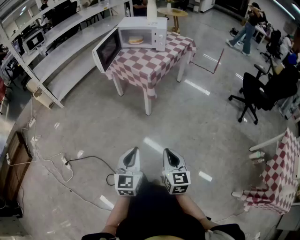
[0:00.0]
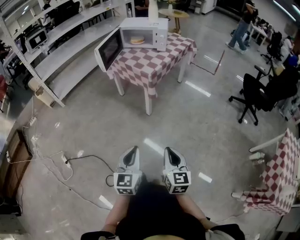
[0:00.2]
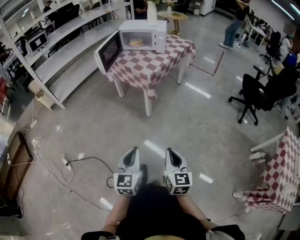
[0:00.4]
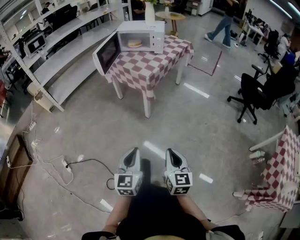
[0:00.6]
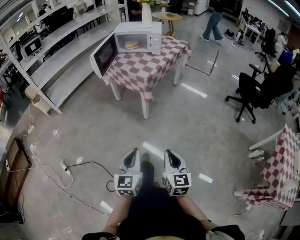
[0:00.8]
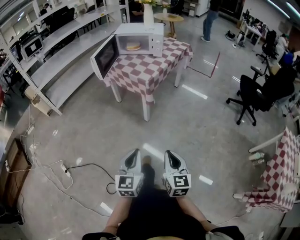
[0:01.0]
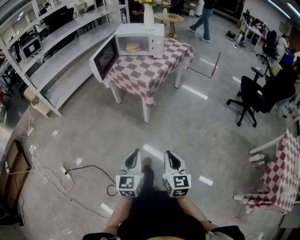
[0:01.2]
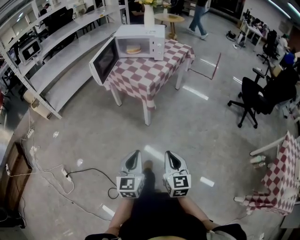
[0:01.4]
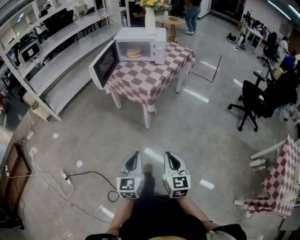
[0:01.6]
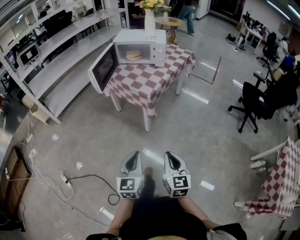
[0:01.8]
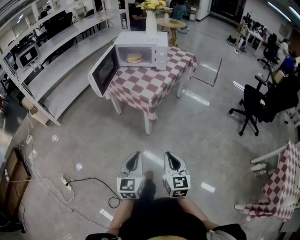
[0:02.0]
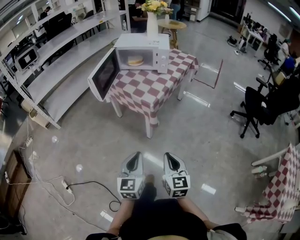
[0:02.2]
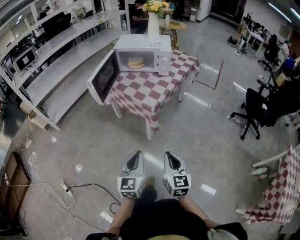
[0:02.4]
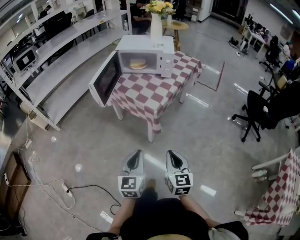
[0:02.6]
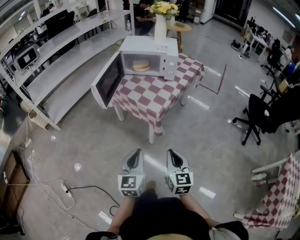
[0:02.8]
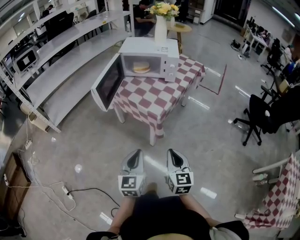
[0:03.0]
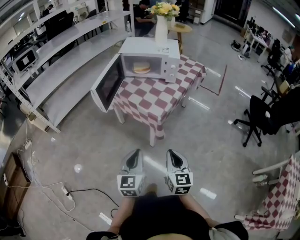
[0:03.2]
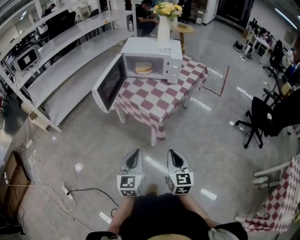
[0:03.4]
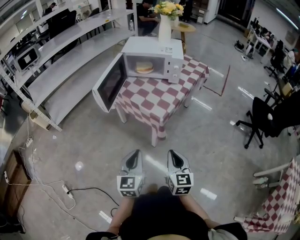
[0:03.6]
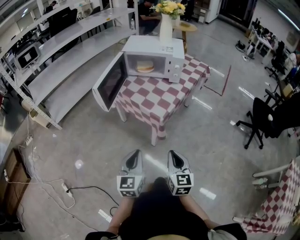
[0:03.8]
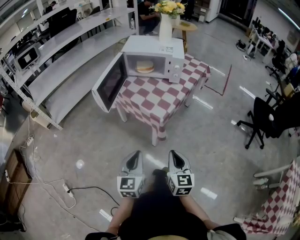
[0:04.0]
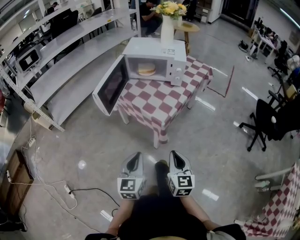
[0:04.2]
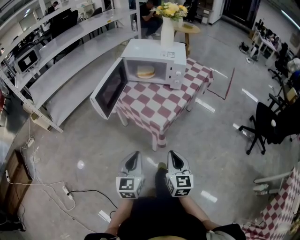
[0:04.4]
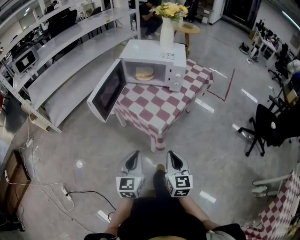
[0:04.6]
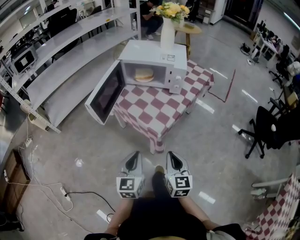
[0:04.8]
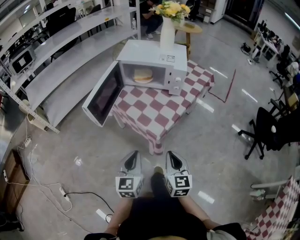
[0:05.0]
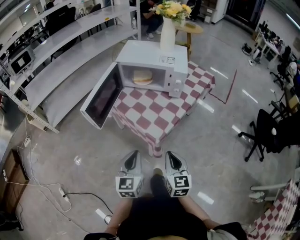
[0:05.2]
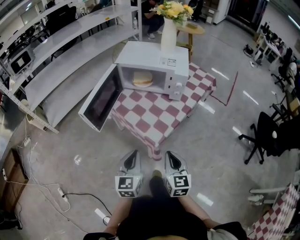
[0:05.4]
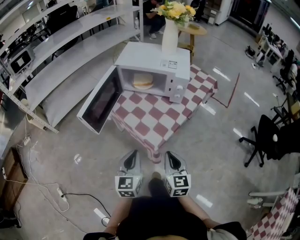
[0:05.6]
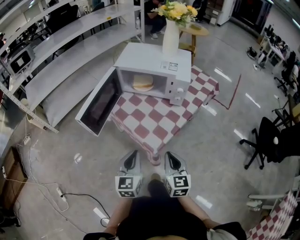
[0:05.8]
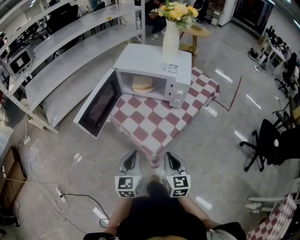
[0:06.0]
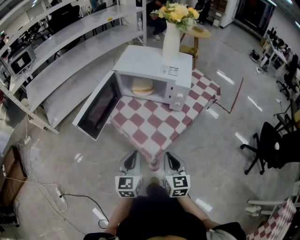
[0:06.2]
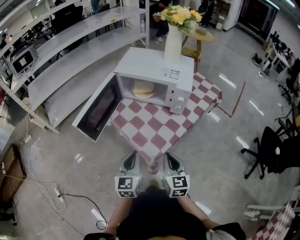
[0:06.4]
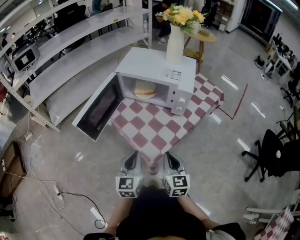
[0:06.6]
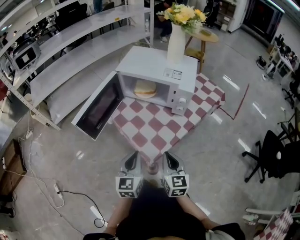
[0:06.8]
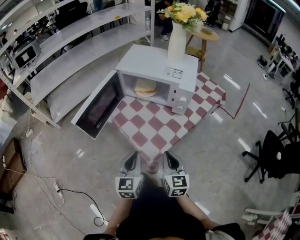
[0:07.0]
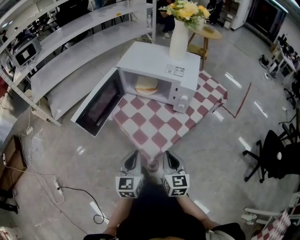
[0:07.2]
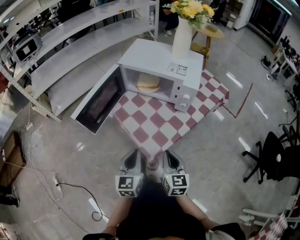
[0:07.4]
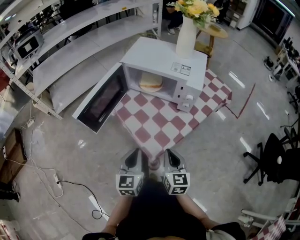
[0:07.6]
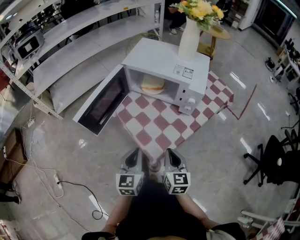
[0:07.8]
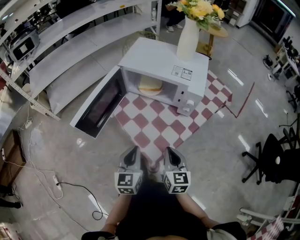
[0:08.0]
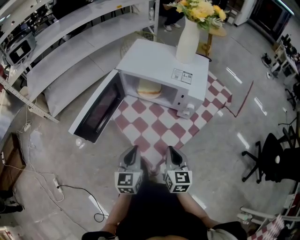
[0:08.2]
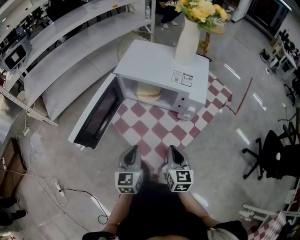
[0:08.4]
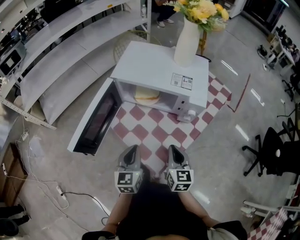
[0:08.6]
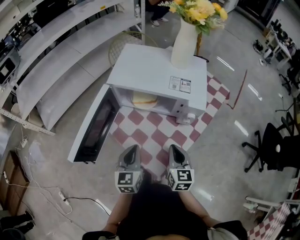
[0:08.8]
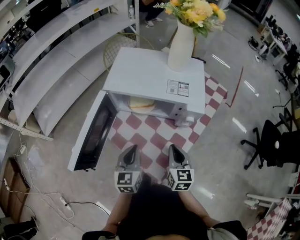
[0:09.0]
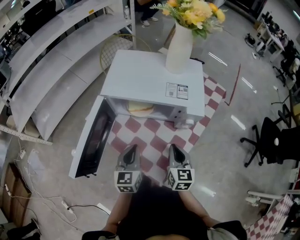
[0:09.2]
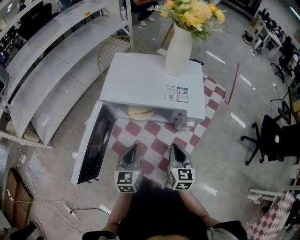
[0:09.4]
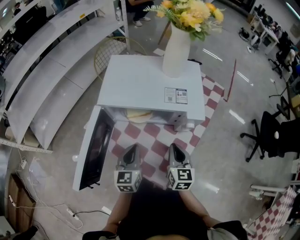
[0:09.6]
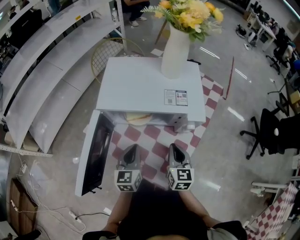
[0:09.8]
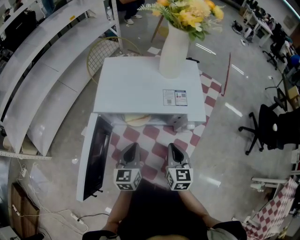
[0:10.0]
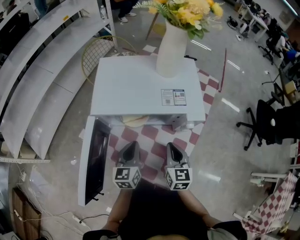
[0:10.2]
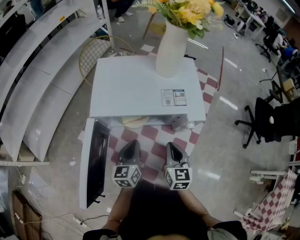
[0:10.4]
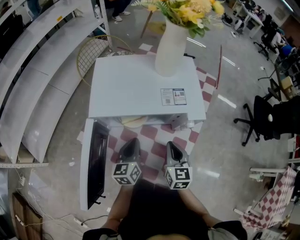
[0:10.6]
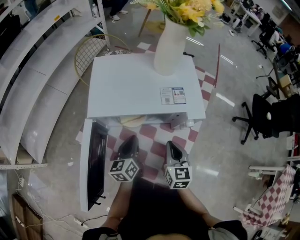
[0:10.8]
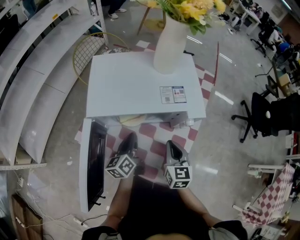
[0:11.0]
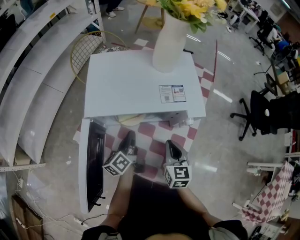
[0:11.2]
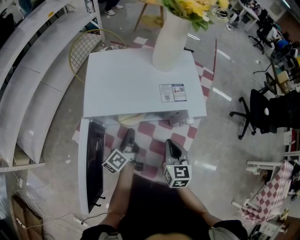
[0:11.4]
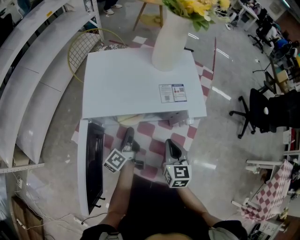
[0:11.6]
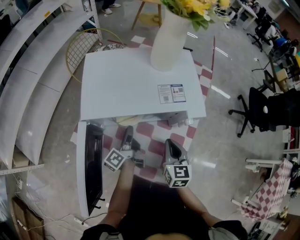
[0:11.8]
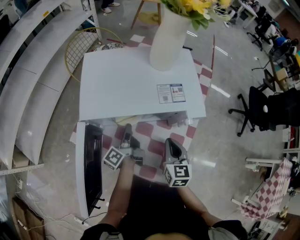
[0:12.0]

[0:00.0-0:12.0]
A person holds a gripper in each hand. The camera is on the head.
0:00.0 to 0:01.6: The grippers both shift forward by roughly 10 cm.
0:01.6 to 0:03.0: The grippers both shift forward by about 20 cm.
0:03.0 to 0:04.4: The grippers both shift forward by some 10 cm.
0:04.4 to 0:06.0: The grippers both shift forward by about 15 cm.
0:06.0 to 0:07.6: The right gripper goes approximately 5 cm forward.
0:07.6 to 0:09.0: The grippers both shift forward by approximately 15 cm.
0:09.0 to 0:10.4: The left gripper travels forward by some 10 cm, while the right gripper travels forward by approximately 5 cm.
0:10.4 to 0:12.0: The left gripper goes some 10 cm forward and downward, twists some 60 degrees counterclockwise, seen from behind, and opens up.

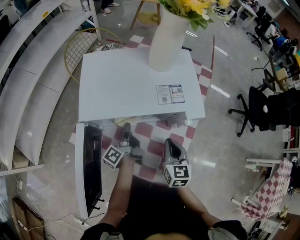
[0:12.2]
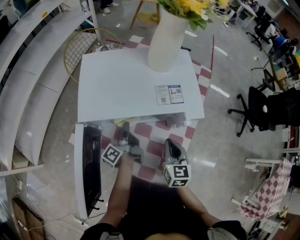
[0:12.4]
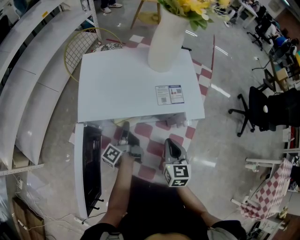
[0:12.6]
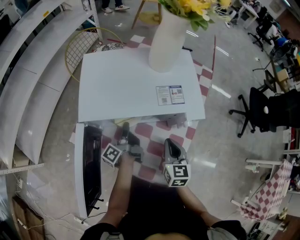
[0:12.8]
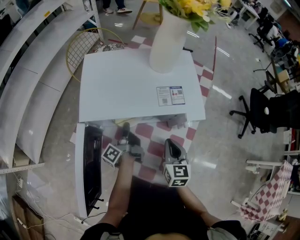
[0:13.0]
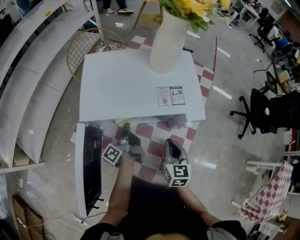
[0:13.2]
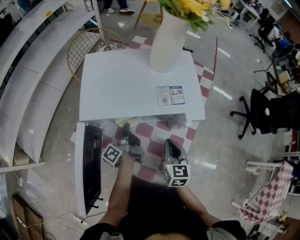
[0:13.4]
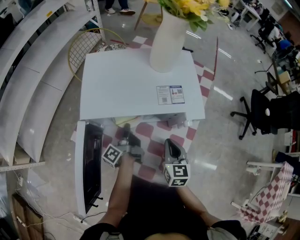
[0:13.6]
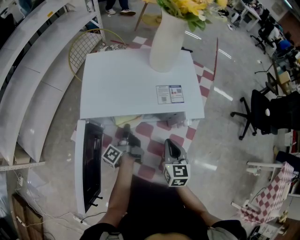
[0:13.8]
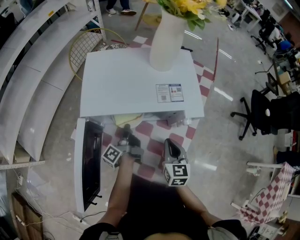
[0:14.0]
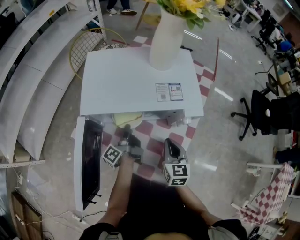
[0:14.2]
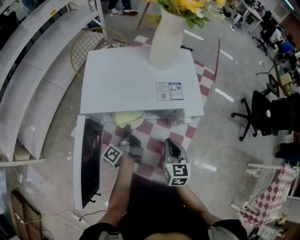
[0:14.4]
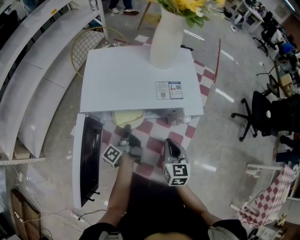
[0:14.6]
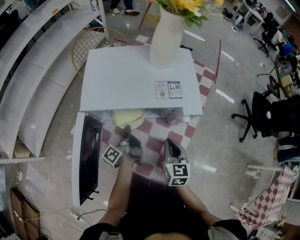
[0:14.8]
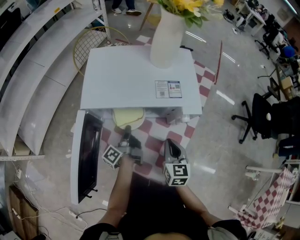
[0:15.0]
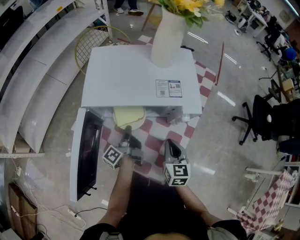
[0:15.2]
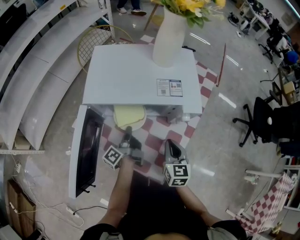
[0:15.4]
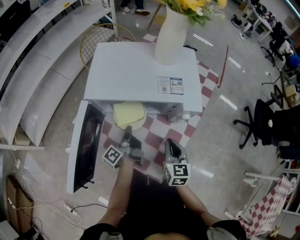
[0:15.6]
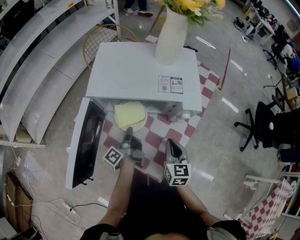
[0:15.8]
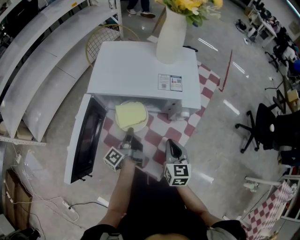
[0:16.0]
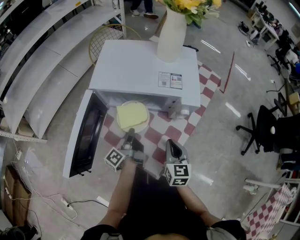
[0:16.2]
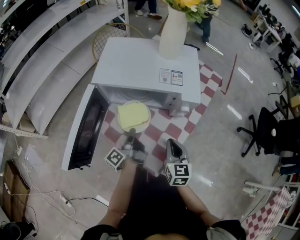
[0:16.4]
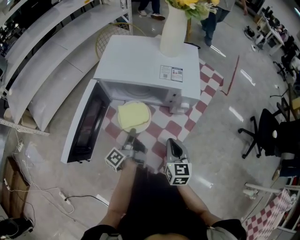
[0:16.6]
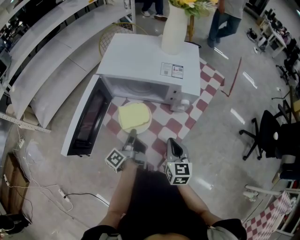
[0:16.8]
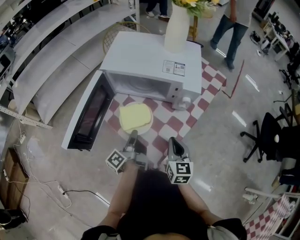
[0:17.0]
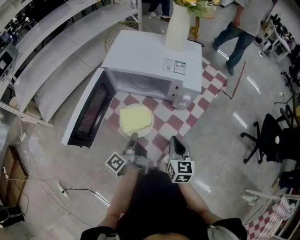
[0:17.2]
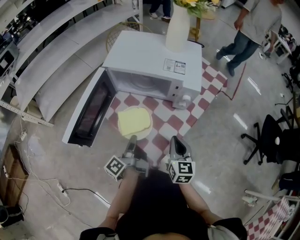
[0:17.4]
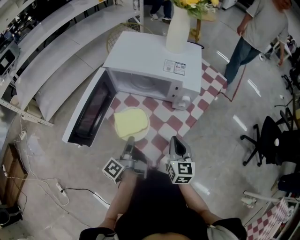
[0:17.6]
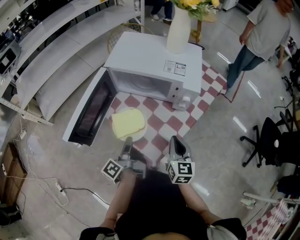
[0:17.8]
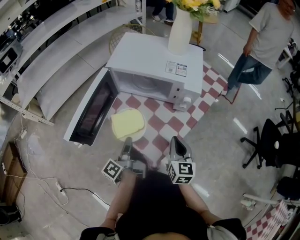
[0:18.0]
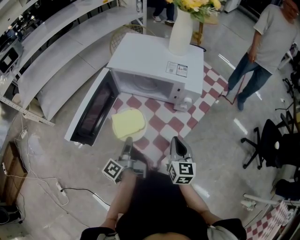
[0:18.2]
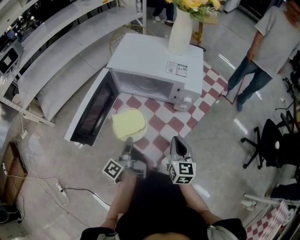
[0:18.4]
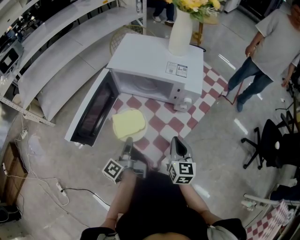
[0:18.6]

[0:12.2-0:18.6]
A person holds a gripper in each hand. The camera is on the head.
0:12.2 to 0:13.8: The left gripper closes its fingers.
0:13.8 to 0:15.4: The left gripper ends up about 5 cm from where it was.
0:15.4 to 0:17.0: The left gripper shifts some 15 cm backward. The right gripper moves backward, roughly 10 cm.
0:17.0 to 0:18.6: The left gripper is displaced backward by some 5 cm.

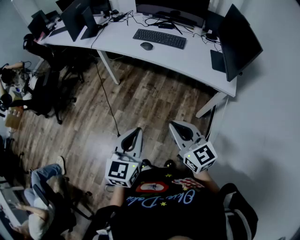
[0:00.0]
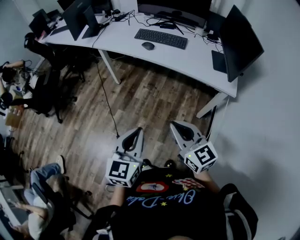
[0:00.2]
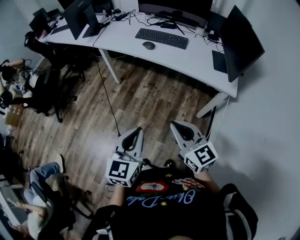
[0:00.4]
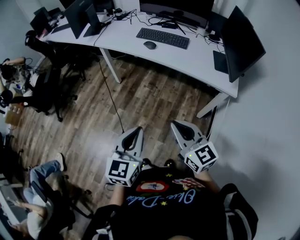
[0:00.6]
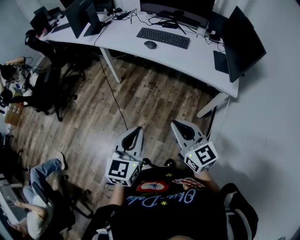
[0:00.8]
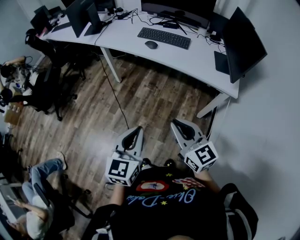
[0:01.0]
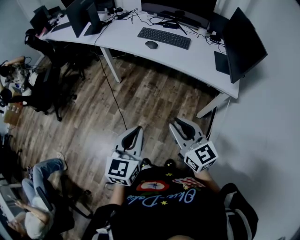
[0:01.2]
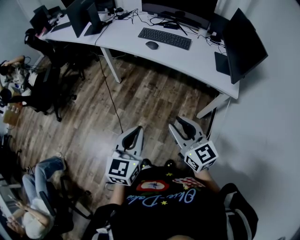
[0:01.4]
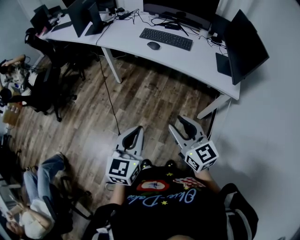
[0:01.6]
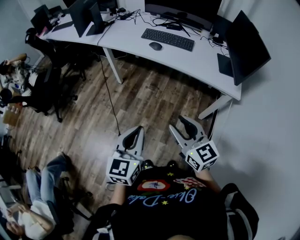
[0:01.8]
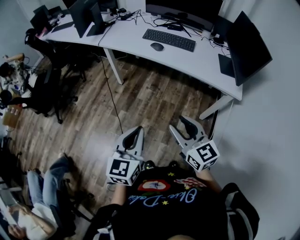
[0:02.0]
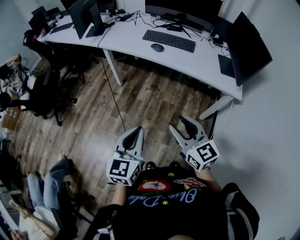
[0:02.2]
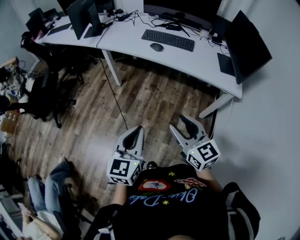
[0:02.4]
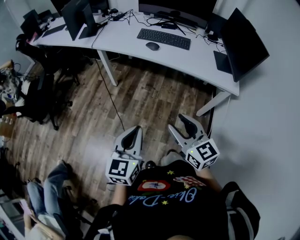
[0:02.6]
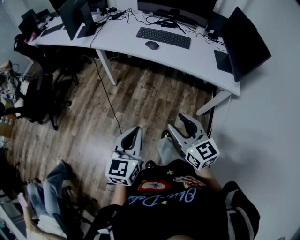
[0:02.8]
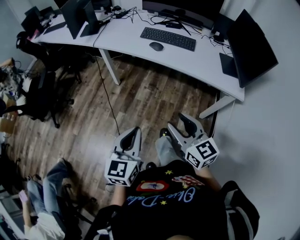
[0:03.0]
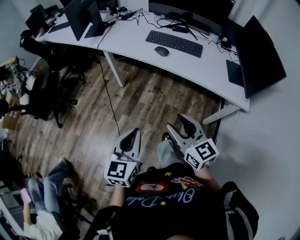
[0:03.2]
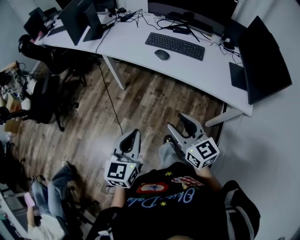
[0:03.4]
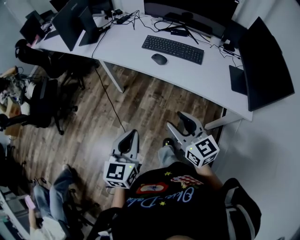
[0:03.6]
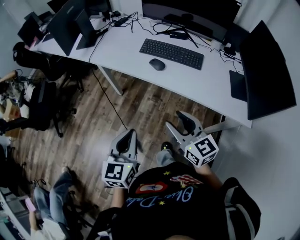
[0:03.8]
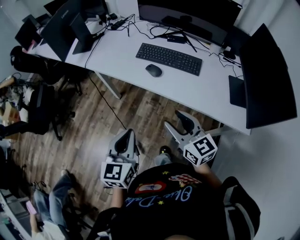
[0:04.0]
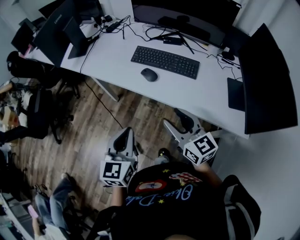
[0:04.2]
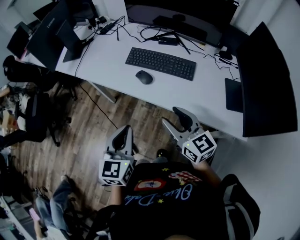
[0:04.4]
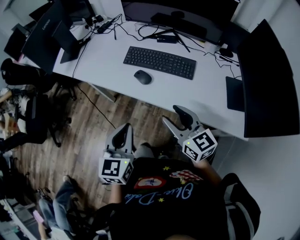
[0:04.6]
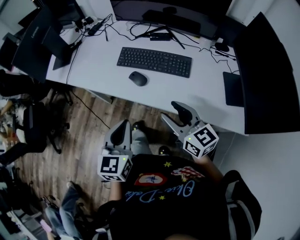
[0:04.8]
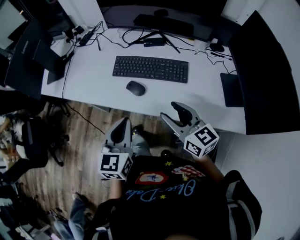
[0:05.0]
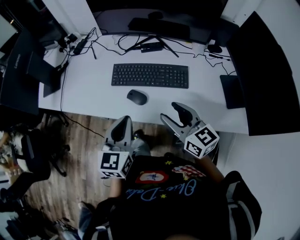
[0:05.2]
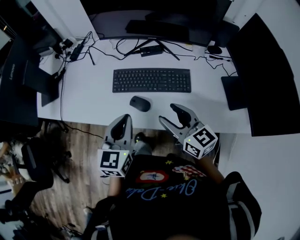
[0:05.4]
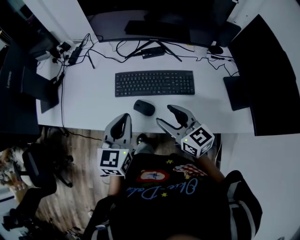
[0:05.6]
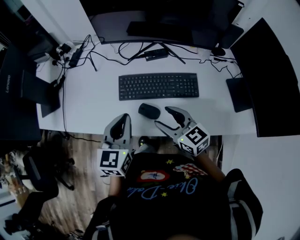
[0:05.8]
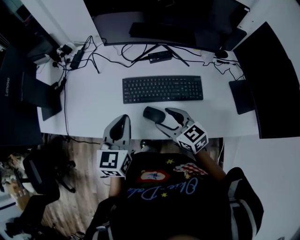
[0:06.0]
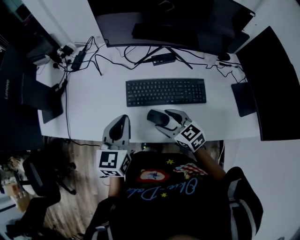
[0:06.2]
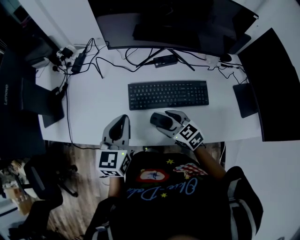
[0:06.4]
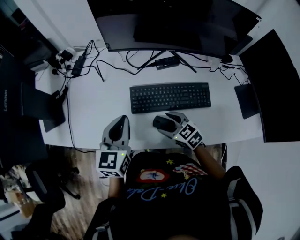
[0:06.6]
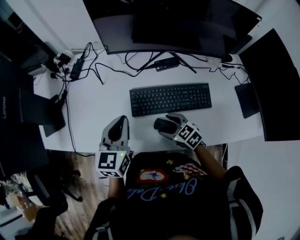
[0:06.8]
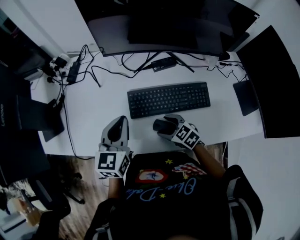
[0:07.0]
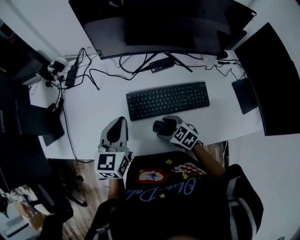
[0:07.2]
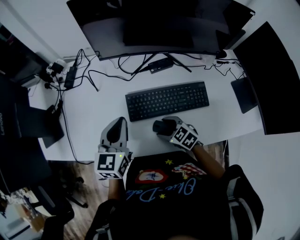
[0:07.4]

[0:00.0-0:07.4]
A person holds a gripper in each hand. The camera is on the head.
0:00.0 to 0:01.4: The right gripper opens up.
0:01.4 to 0:03.0: The right gripper shifts roughly 10 cm forward and to the left; the left gripper shifts some 10 cm to the left and forward.
0:03.0 to 0:04.4: The two grippers go about 30 cm forward and to the right.
0:04.4 to 0:06.0: Both grippers travel together forward, roughly 25 cm. The left gripper turns by some 20 degrees.
0:06.0 to 0:07.4: The left gripper heads forward, covering approximately 10 cm; the right gripper is displaced downward by approximately 15 cm, and changes its angle by about 20 degrees.
